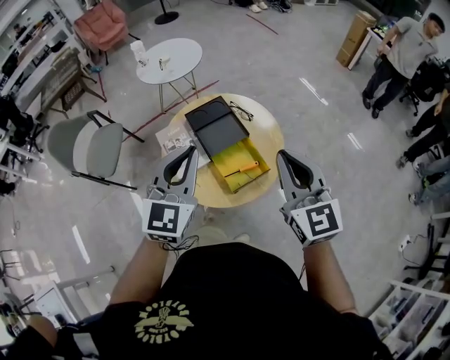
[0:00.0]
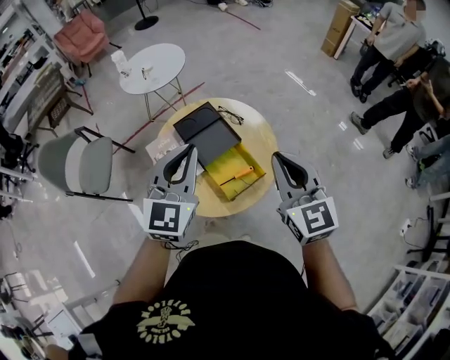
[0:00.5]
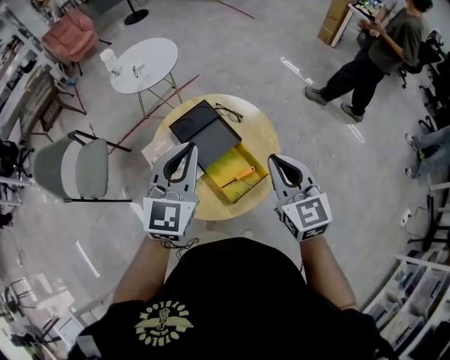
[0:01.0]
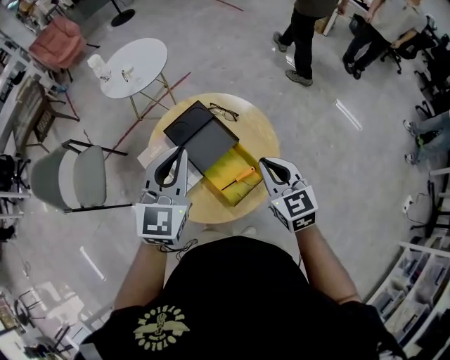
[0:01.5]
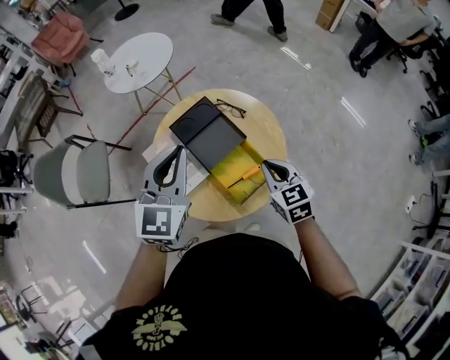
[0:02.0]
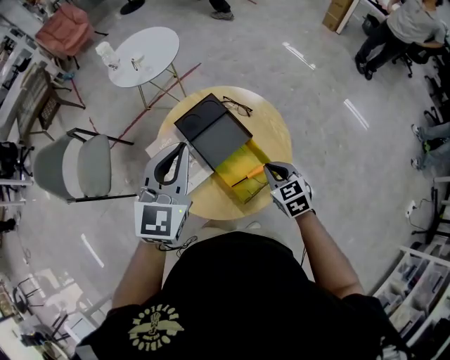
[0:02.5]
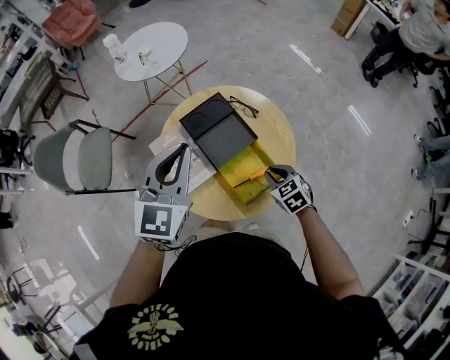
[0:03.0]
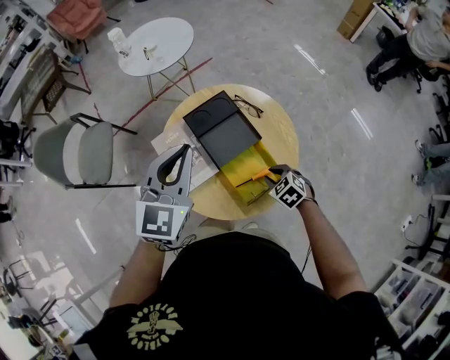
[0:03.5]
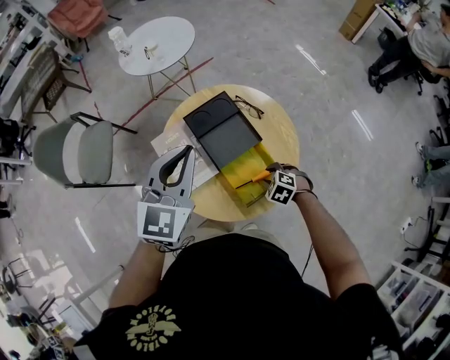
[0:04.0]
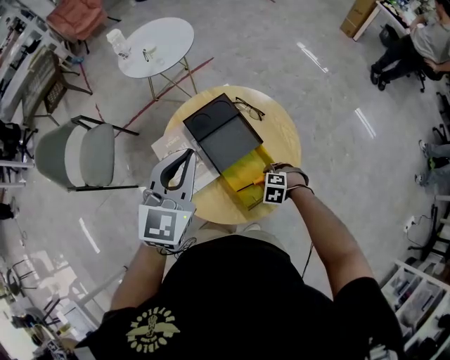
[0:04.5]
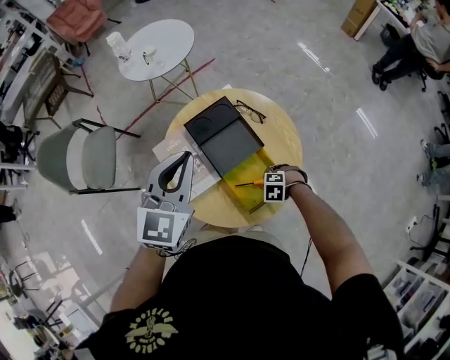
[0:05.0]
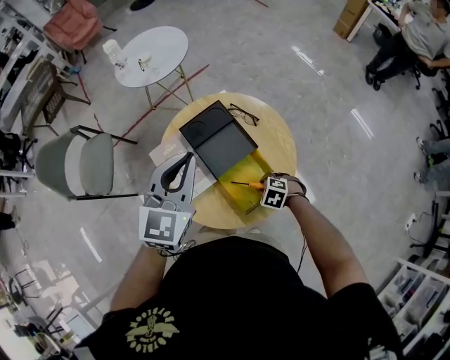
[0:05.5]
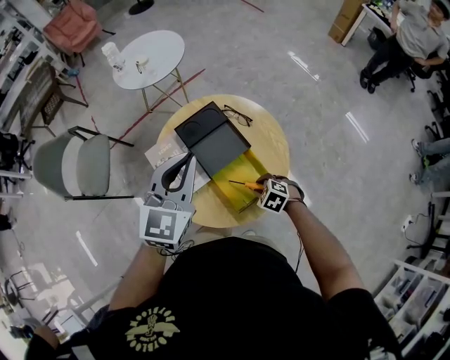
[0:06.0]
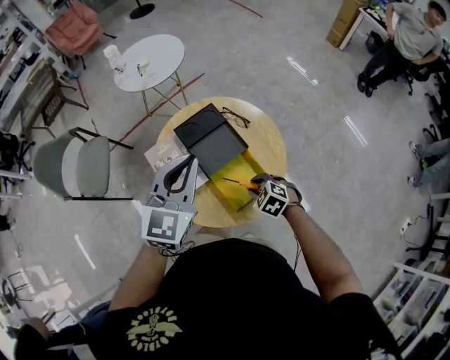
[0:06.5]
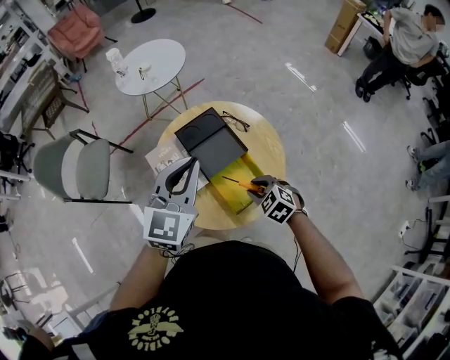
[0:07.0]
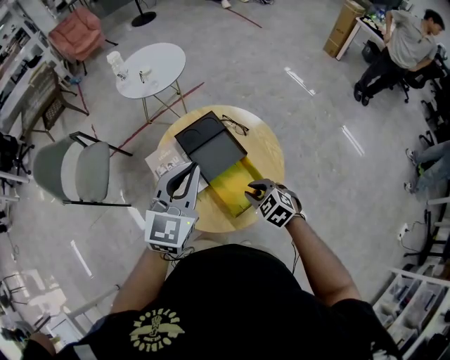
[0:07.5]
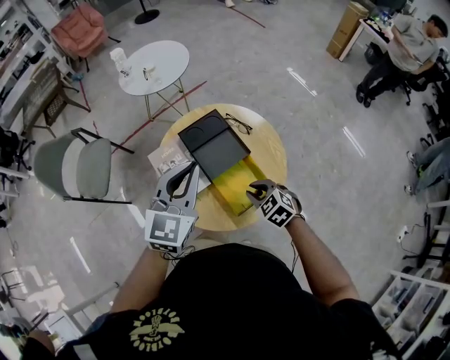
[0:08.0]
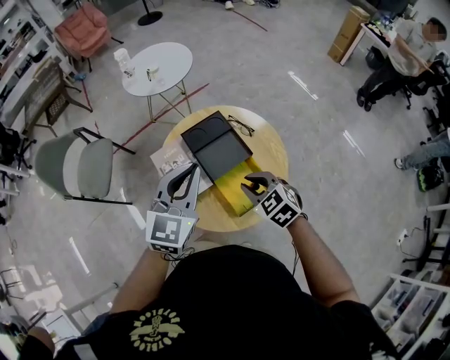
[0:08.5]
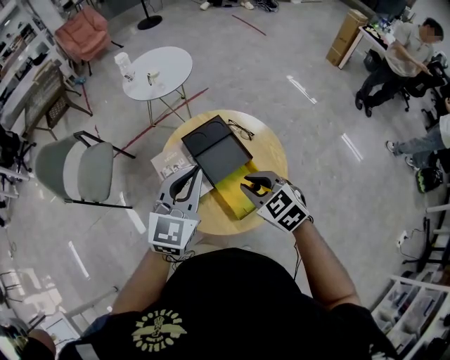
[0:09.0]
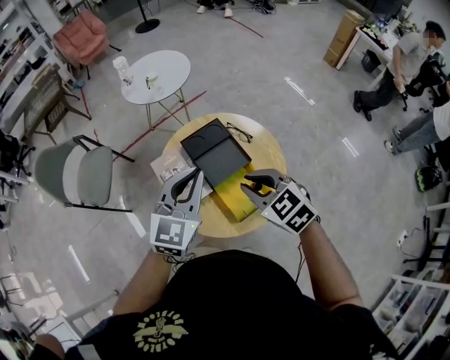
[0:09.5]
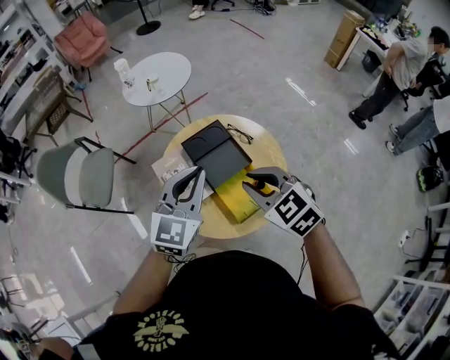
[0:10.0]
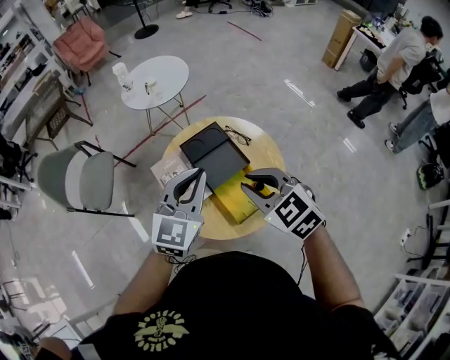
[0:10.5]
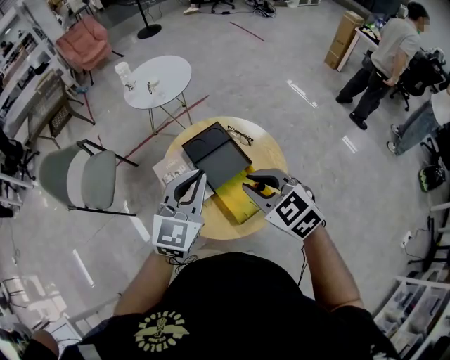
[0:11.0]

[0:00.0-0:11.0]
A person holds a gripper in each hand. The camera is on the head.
0:00.0 to 0:02.0: The left gripper travels forward by about 15 cm. The right gripper is displaced downward and forward by roughly 25 cm, and changes its angle by about 30 degrees.
0:02.0 to 0:03.5: The right gripper shifts some 15 cm downward, turns by about 40 degrees, and opens.
0:03.5 to 0:05.5: The right gripper shifts some 5 cm downward, and rotates some 20 degrees.
0:05.5 to 0:07.5: The right gripper moves upward, some 15 cm, and changes its angle by approximately 30 degrees. The left gripper moves roughly 5 cm.
0:07.5 to 0:09.0: The right gripper goes roughly 15 cm upward.
0:09.0 to 0:11.0: The right gripper is displaced upward by roughly 10 cm.

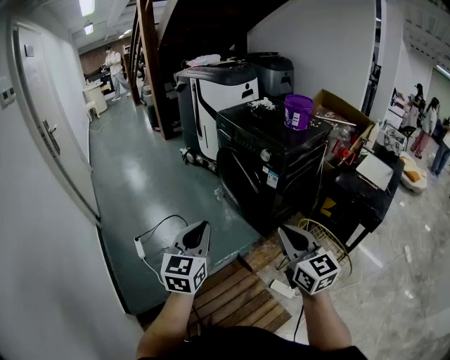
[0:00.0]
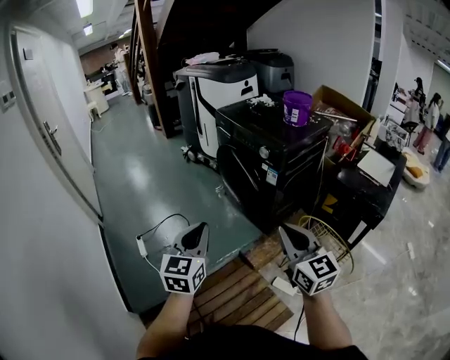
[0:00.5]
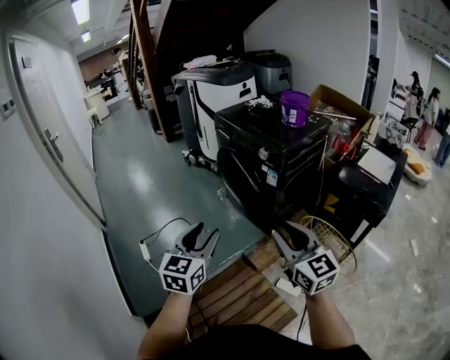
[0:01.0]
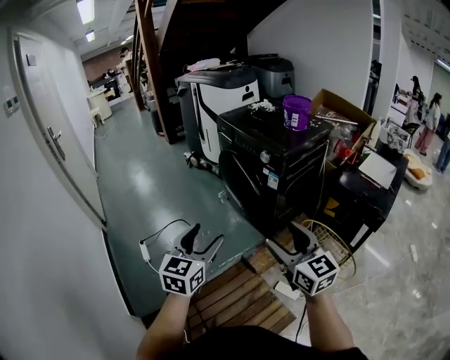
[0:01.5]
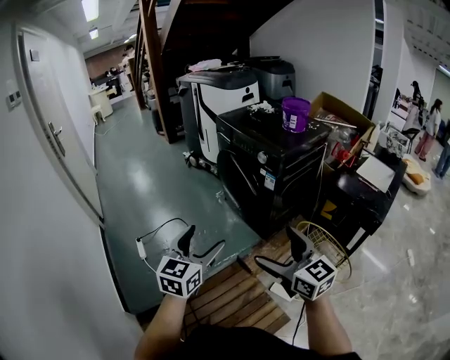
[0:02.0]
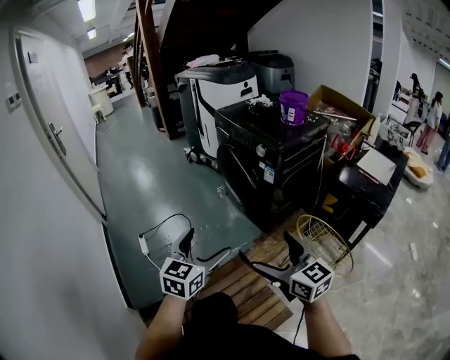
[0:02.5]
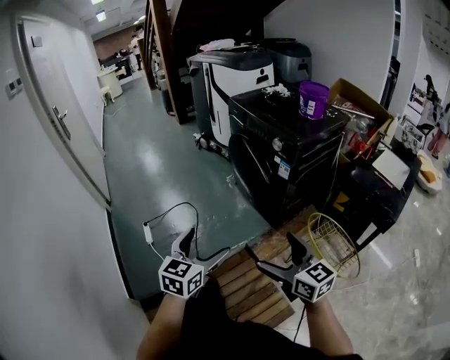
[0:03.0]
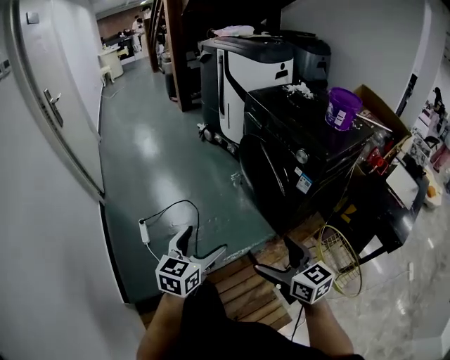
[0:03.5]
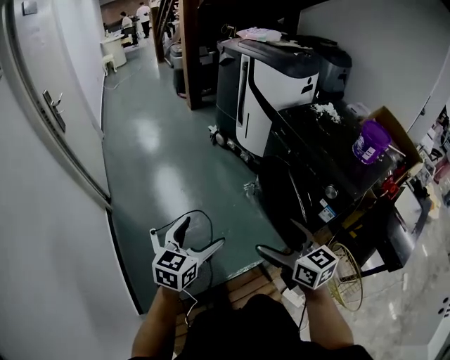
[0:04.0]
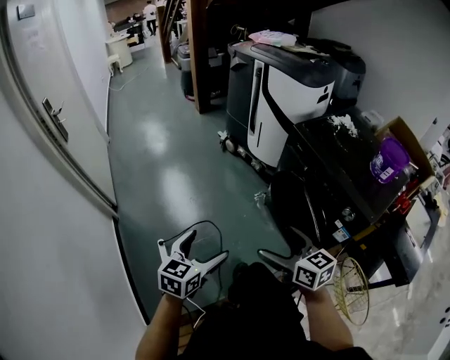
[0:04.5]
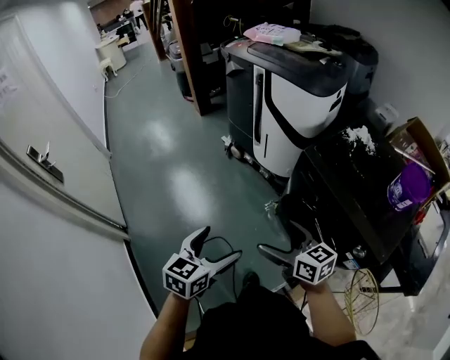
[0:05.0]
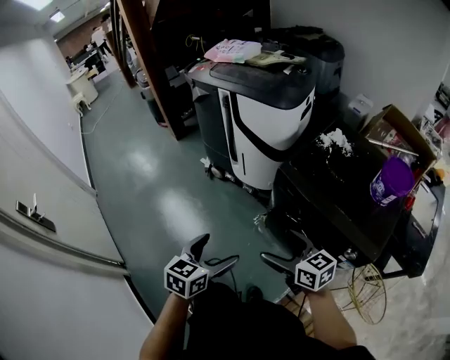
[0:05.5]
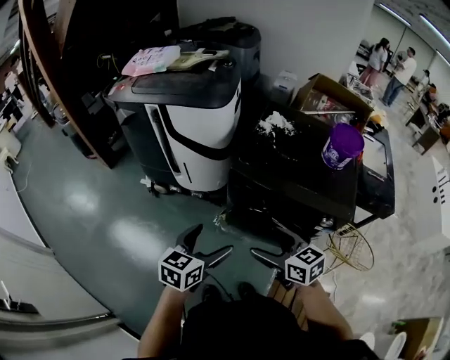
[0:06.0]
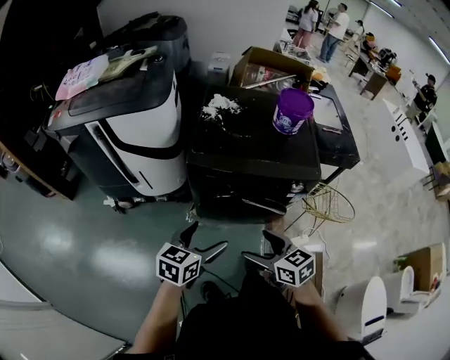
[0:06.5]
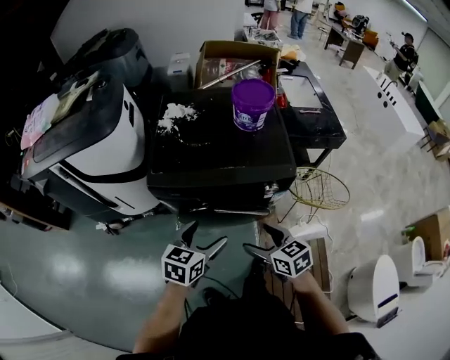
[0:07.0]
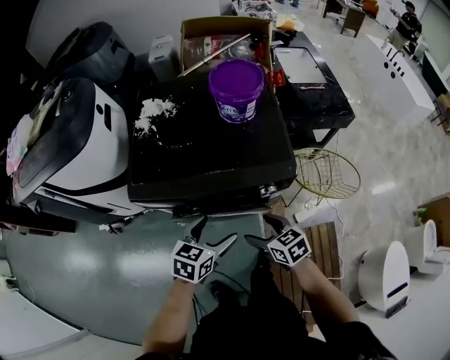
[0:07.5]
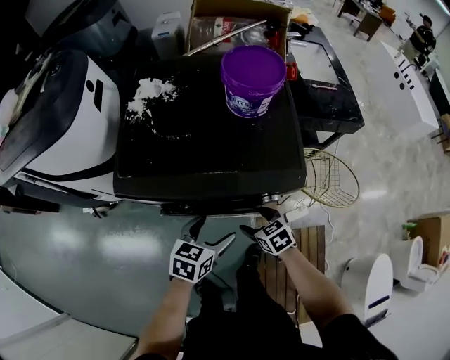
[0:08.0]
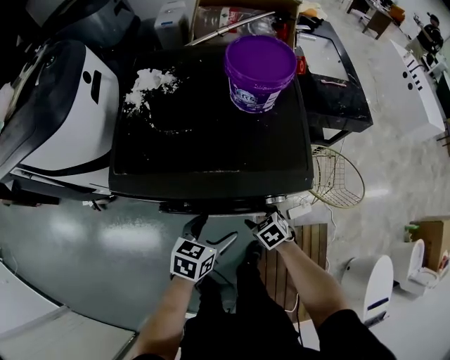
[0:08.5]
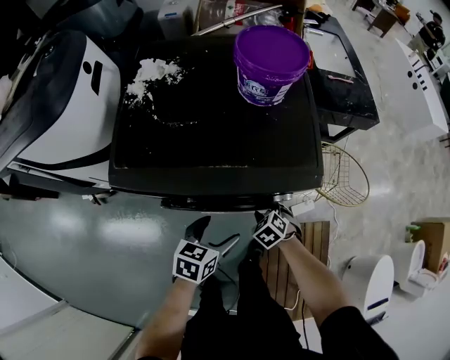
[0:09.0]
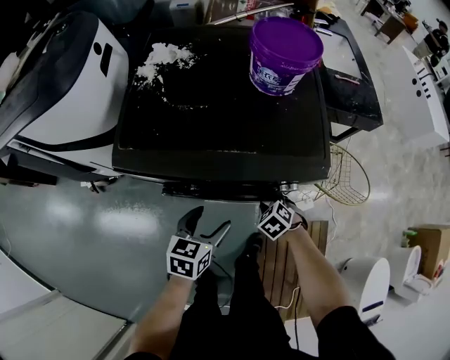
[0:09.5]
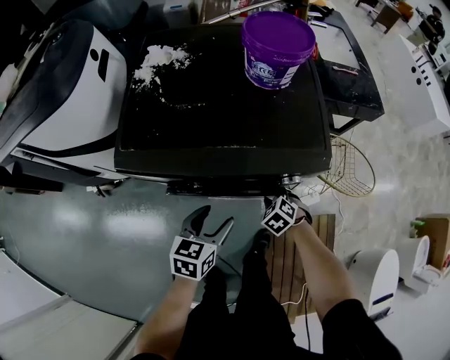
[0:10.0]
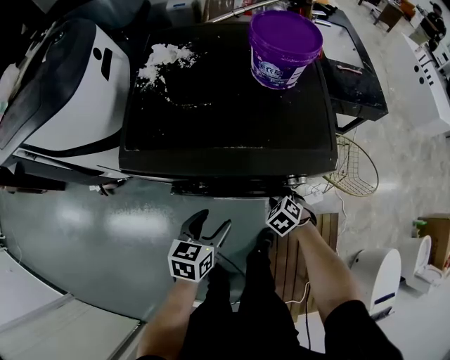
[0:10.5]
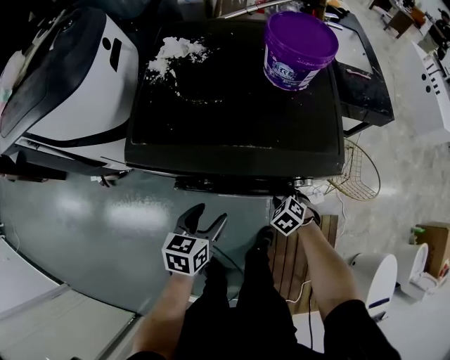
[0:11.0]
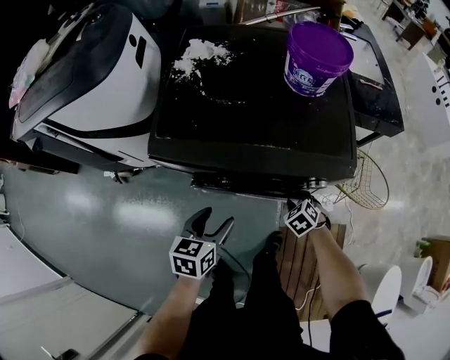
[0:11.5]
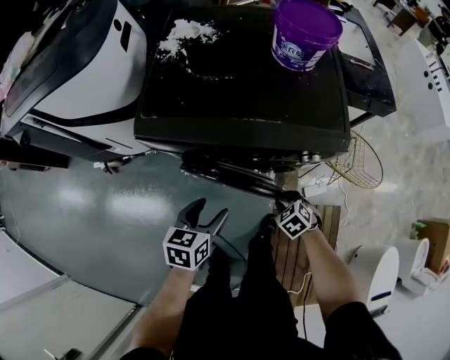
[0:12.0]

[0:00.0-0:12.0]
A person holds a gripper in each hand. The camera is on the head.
0:00.0 to 0:02.0: The left gripper opens its fingers. Meanwhile the right gripper opens its fingers.
0:02.0 to 0:04.0: The grippers both shift forward and to the left by roughly 35 cm.
0:04.0 to 0:06.0: The left gripper shifts by some 40 cm, and changes its angle by some 50 degrees; the right gripper moves roughly 35 cm, and rotates some 30 degrees.
0:06.0 to 0:08.0: The right gripper moves downward, some 25 cm, and rotates about 30 degrees. The left gripper moves roughly 35 cm, and swivels about 30 degrees.
0:08.0 to 0:10.0: The right gripper travels downward by about 10 cm, swivels roughly 30 degrees, and closes, while the left gripper ends up roughly 5 cm from where it was.
0:10.0 to 0:12.0: The right gripper is displaced backward by roughly 10 cm; the left gripper travels to the left and backward by approximately 10 cm.

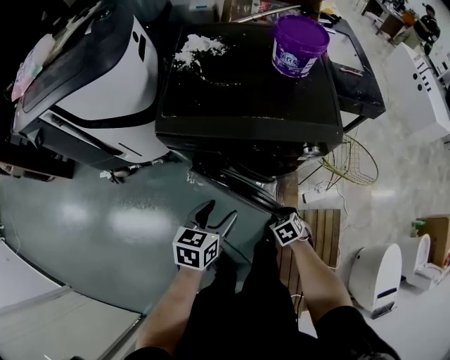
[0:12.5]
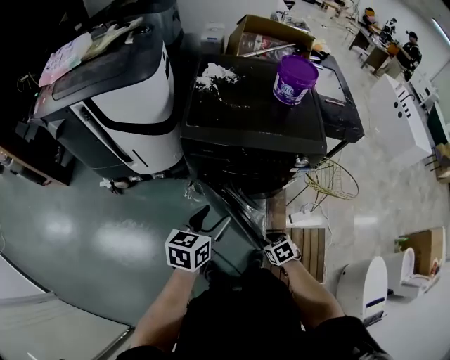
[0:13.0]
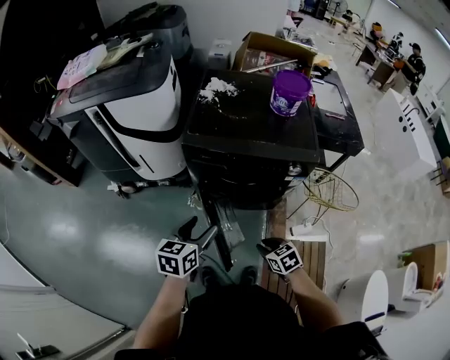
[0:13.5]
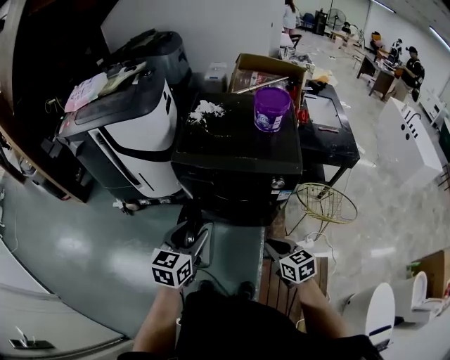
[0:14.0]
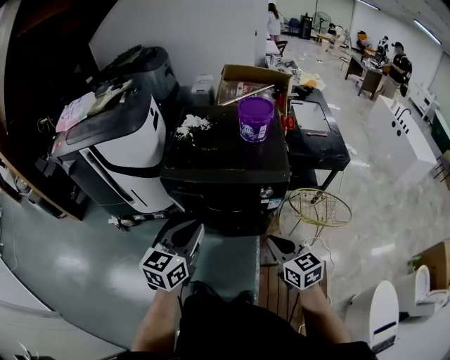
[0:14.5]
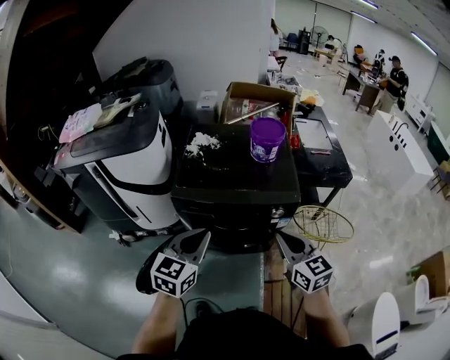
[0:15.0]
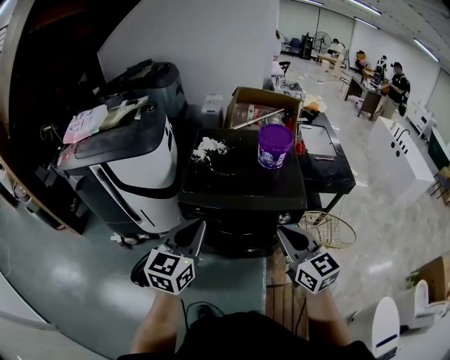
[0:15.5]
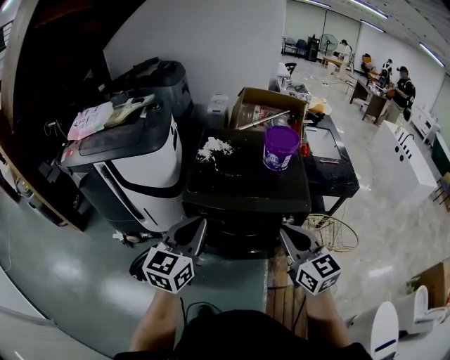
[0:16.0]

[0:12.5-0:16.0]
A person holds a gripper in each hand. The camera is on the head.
0:12.5 to 0:14.5: Both grippers move upward, roughly 30 cm. The right gripper tips its fingers upward by approximately 50 degrees, while the left gripper turns by roughly 30 degrees, and closes up.
0:14.5 to 0:16.0: The left gripper goes some 15 cm to the left, forward and upward. The right gripper travels upward, forward and to the left by about 20 cm.
